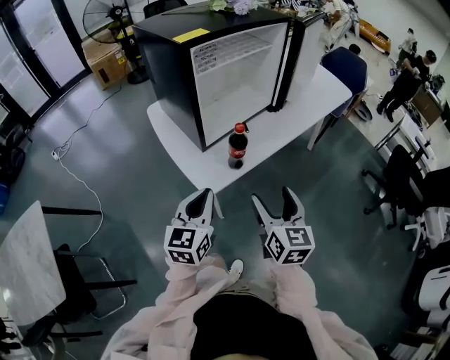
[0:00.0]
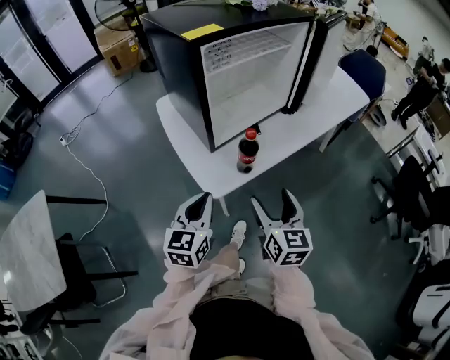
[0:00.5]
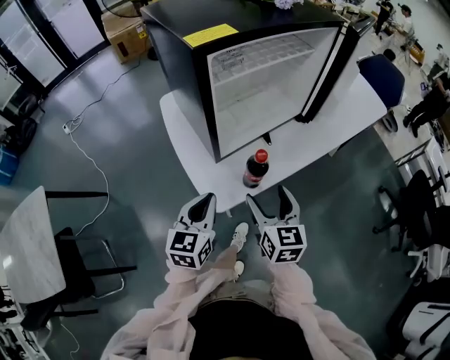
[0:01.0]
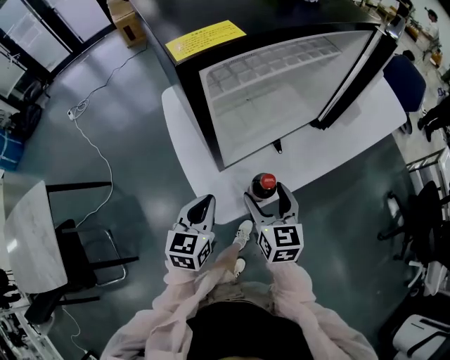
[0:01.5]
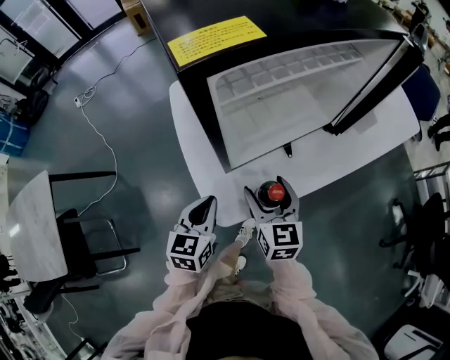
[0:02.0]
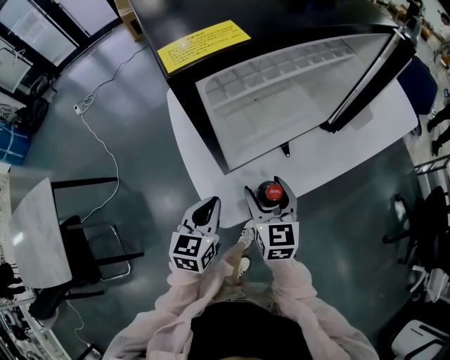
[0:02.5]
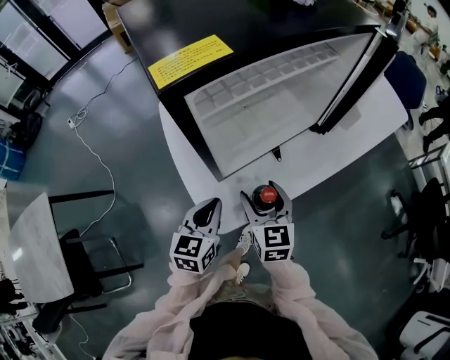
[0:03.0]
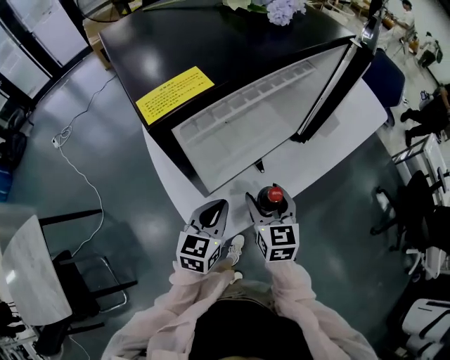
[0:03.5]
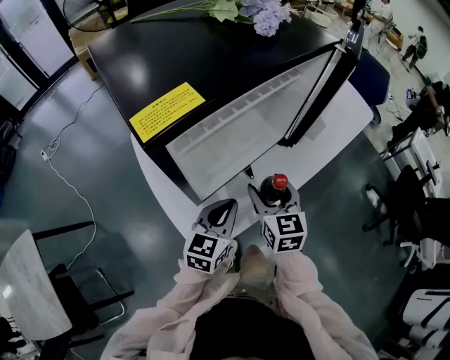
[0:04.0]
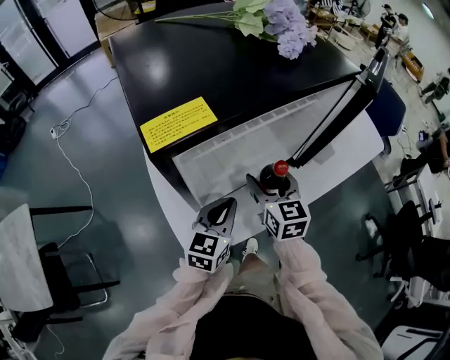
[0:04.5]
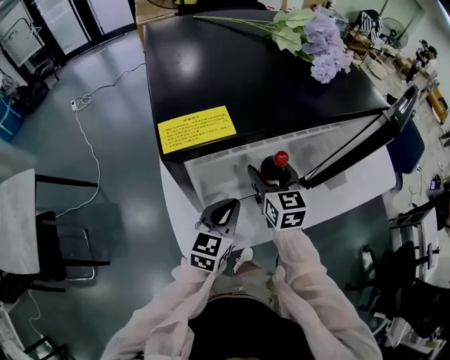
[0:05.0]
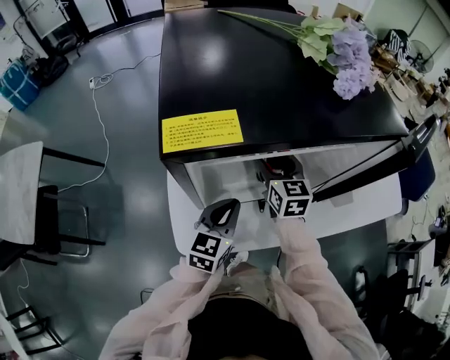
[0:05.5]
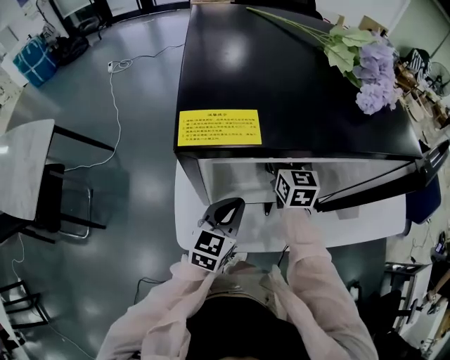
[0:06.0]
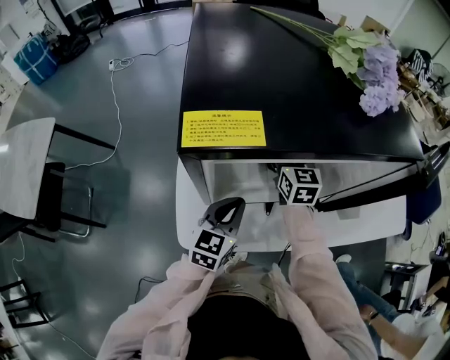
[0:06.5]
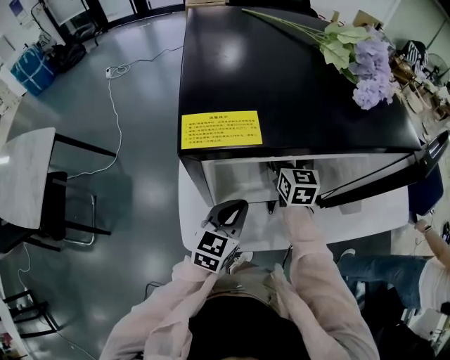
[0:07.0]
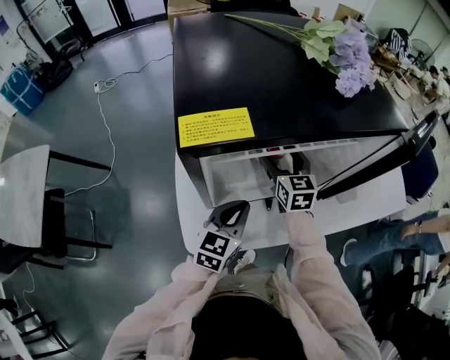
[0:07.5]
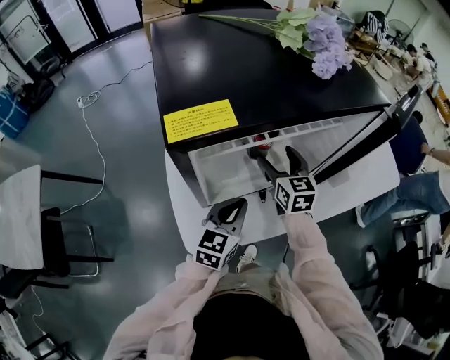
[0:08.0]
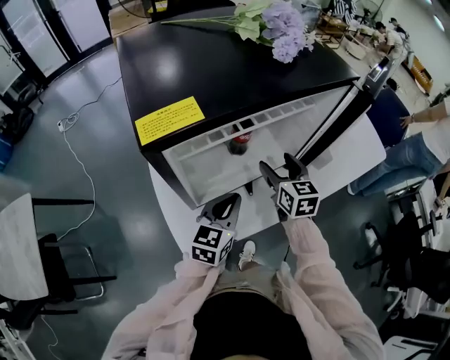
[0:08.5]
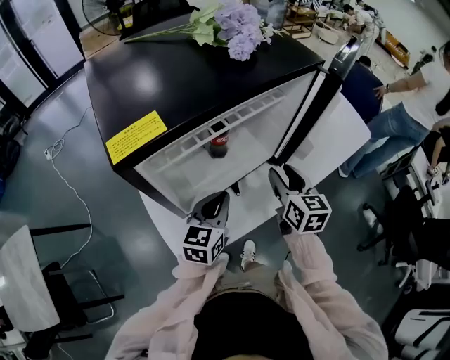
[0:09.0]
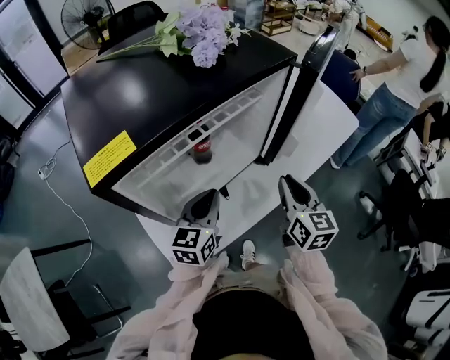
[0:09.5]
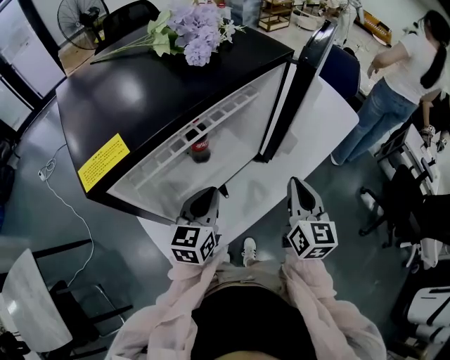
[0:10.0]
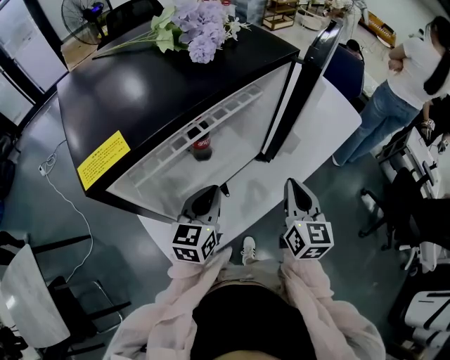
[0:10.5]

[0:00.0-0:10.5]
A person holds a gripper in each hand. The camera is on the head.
0:00.0 to 0:02.0: The left gripper shifts roughly 20 cm forward and downward, and changes its angle by roughly 20 degrees. Meanwhile the right gripper heads forward, covering some 25 cm.
0:02.0 to 0:04.0: The two grippers go about 15 cm to the right, forward and upward. The left gripper swivels approximately 20 degrees.
0:04.0 to 0:06.5: The right gripper ends up roughly 25 cm from where it was, and swivels about 30 degrees, while the left gripper ends up about 5 cm from where it was, and changes its angle by approximately 30 degrees.
0:06.5 to 0:08.5: The right gripper heads backward and to the right, covering about 15 cm. The left gripper shifts by approximately 5 cm.
0:08.5 to 0:10.5: The right gripper shifts roughly 15 cm to the right and backward, changes its angle by roughly 30 degrees, and closes up; the left gripper changes place by some 5 cm.

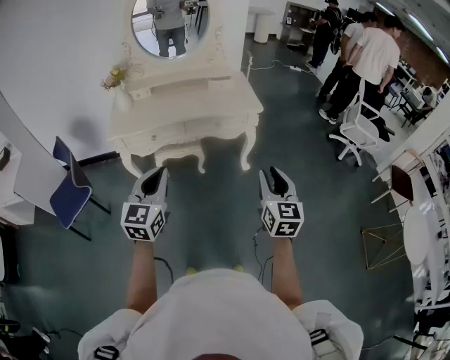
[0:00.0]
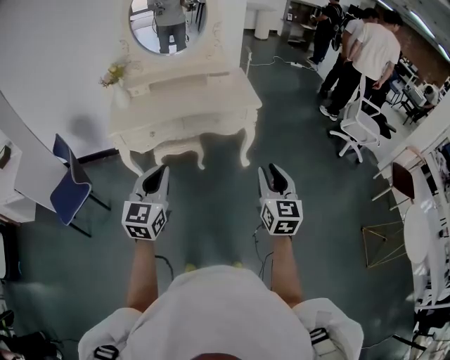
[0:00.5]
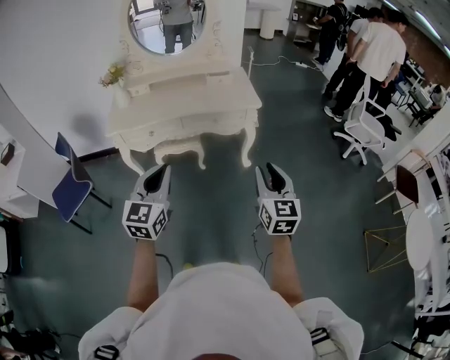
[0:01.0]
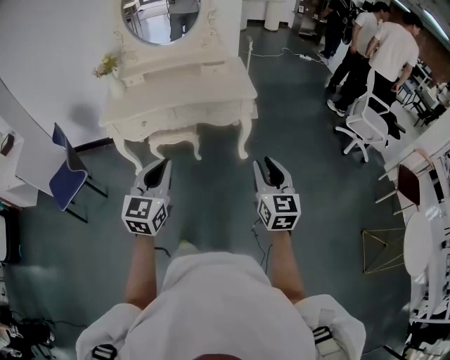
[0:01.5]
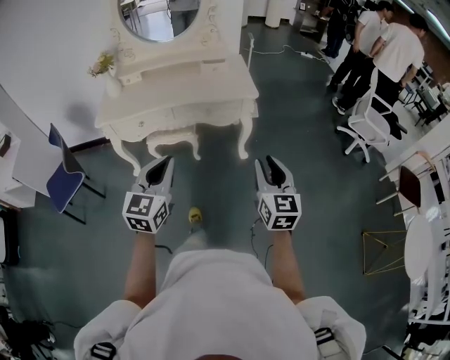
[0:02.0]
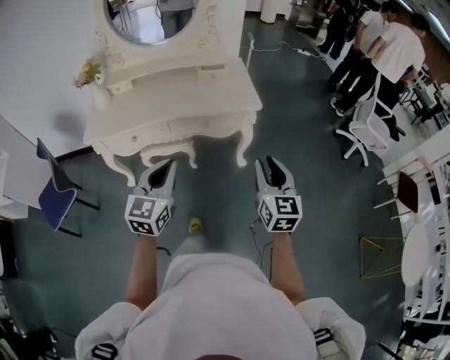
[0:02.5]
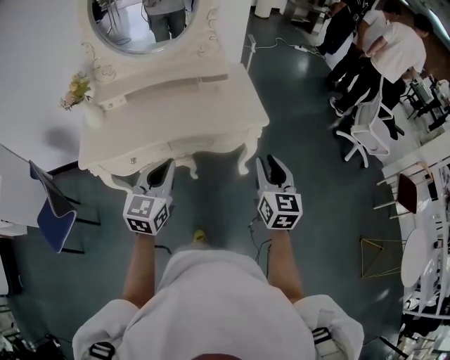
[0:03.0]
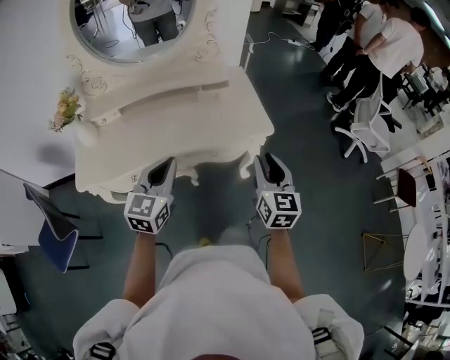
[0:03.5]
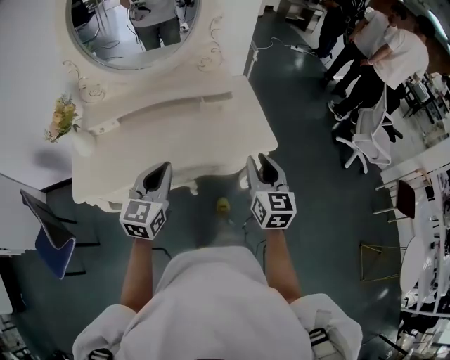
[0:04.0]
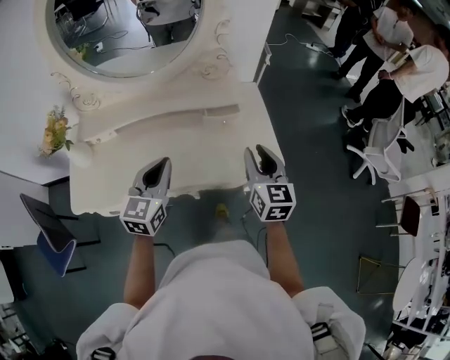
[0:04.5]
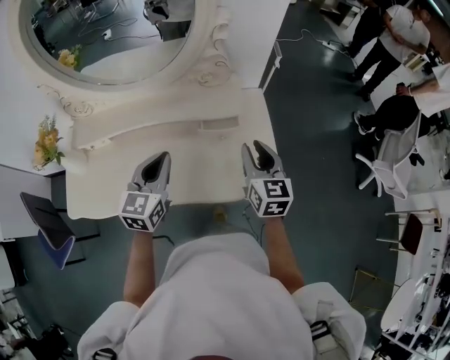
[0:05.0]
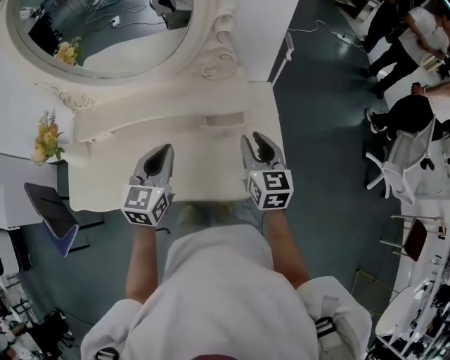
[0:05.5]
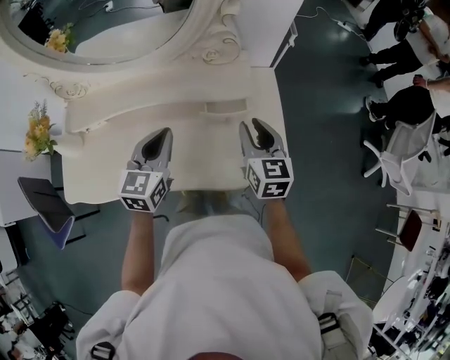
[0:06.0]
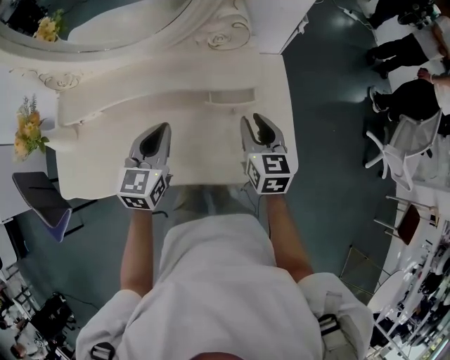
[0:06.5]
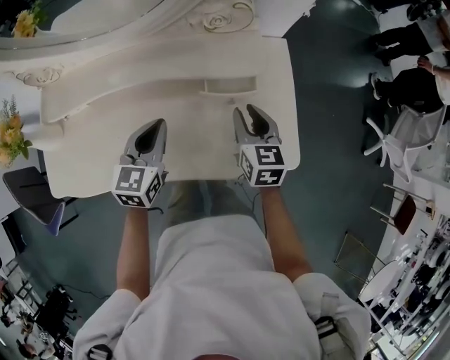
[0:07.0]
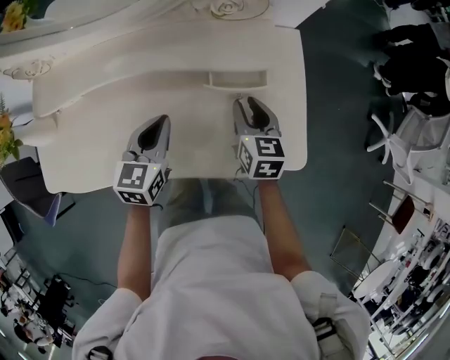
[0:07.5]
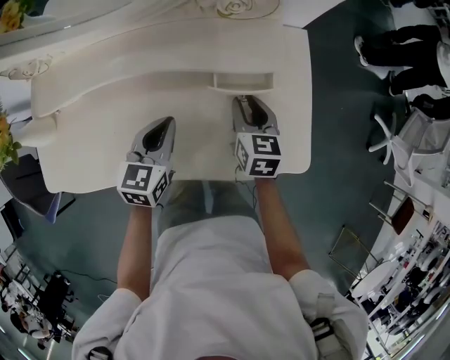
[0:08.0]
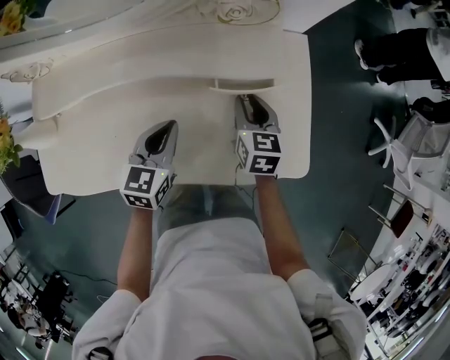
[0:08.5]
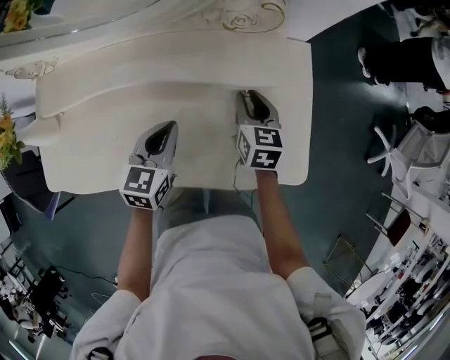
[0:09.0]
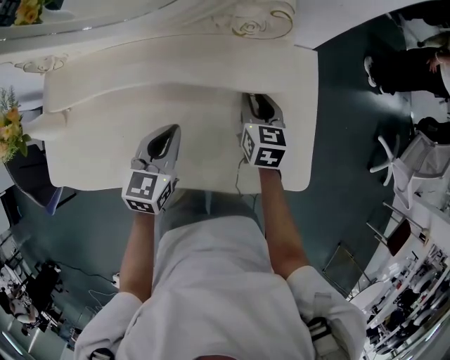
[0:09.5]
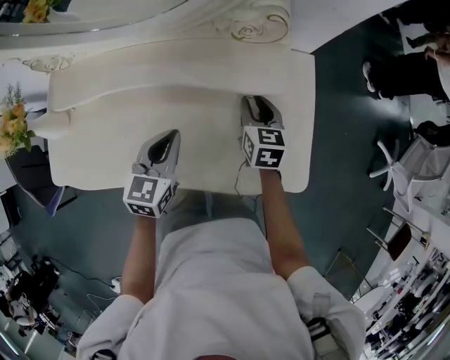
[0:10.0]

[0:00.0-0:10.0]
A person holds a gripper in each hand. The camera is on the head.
0:00.0 to 0:02.0: The left gripper is displaced to the right by approximately 15 cm. Meanwhile the right gripper travels to the right and forward by about 10 cm.
0:02.0 to 0:04.0: The pair of grippers is taken forward and to the left, about 50 cm.
0:04.0 to 0:06.0: Both grippers travel together forward, roughly 30 cm.
0:06.0 to 0:08.0: The two grippers go approximately 15 cm downward.
0:08.0 to 0:10.0: The right gripper shifts roughly 5 cm forward.

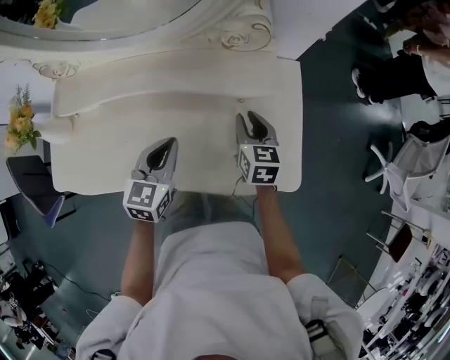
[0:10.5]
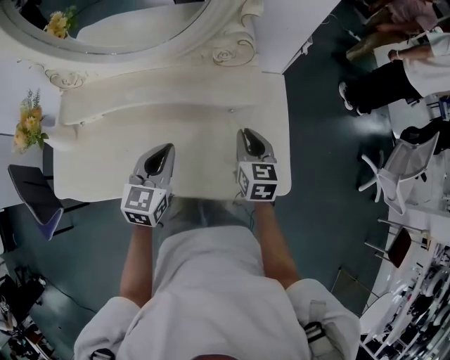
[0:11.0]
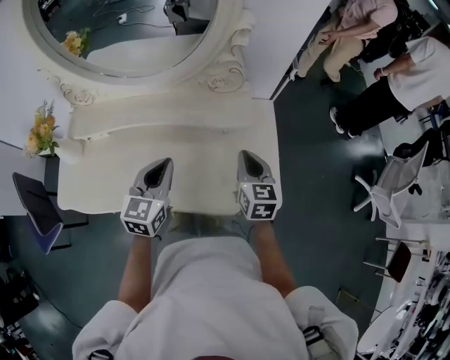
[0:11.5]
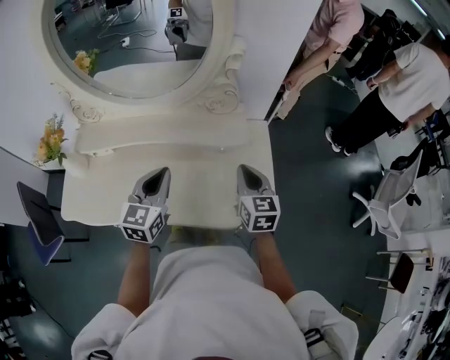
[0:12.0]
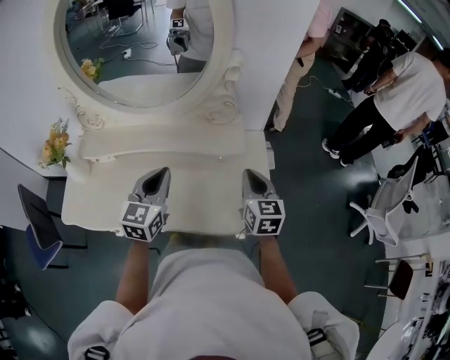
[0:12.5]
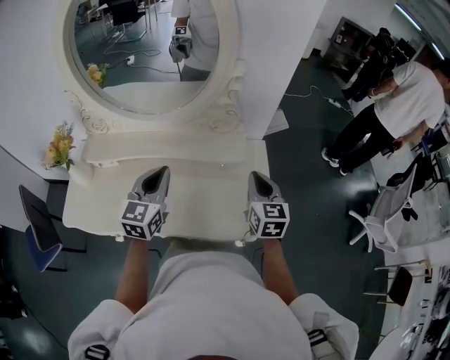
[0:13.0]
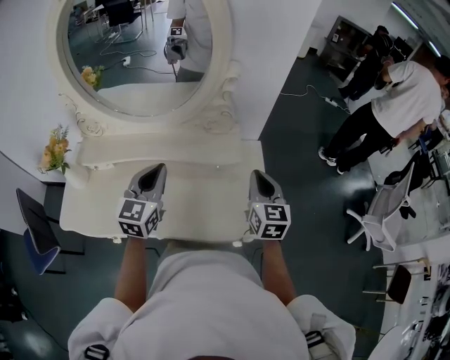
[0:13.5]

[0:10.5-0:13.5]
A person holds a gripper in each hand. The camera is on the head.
0:10.5 to 0:12.0: The left gripper is displaced upward by roughly 15 cm. Meanwhile the right gripper moves upward and backward, approximately 15 cm, and closes its fingers.
0:12.0 to 0:13.5: The grippers both shift upward by some 5 cm.

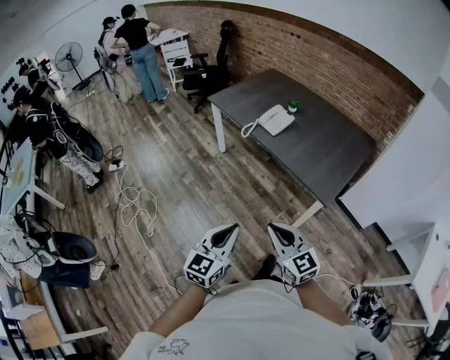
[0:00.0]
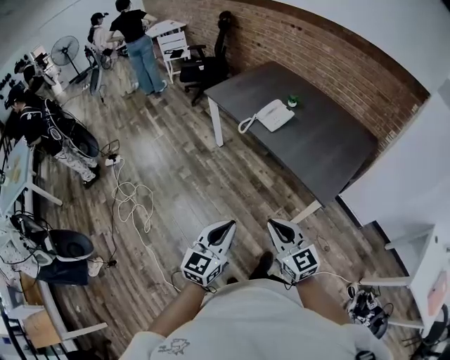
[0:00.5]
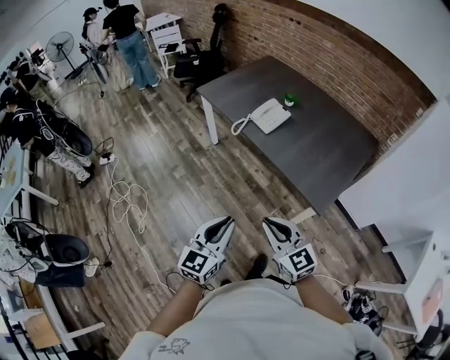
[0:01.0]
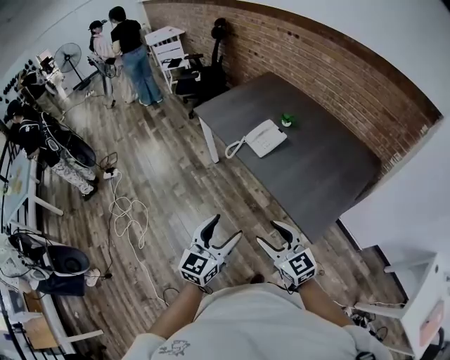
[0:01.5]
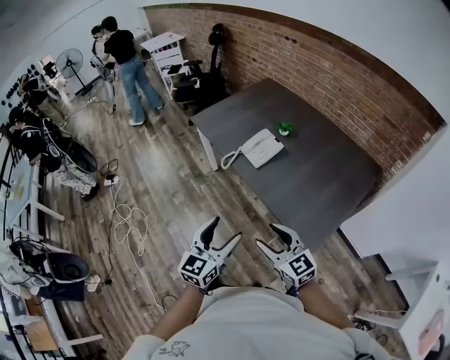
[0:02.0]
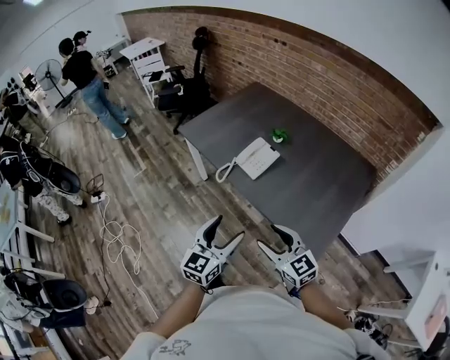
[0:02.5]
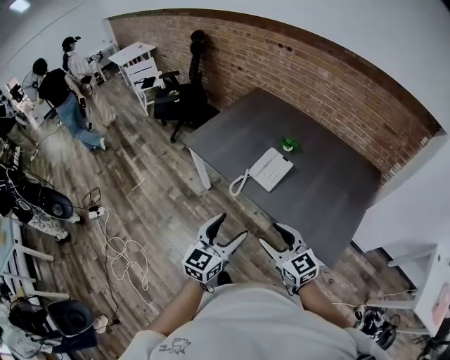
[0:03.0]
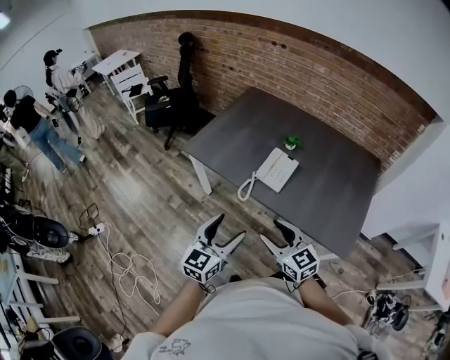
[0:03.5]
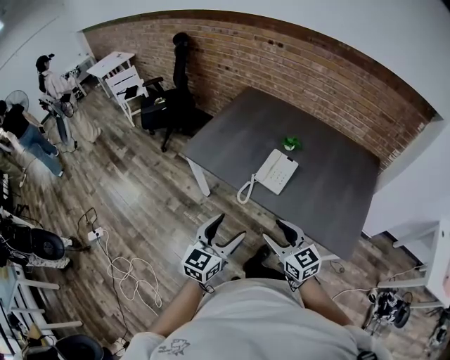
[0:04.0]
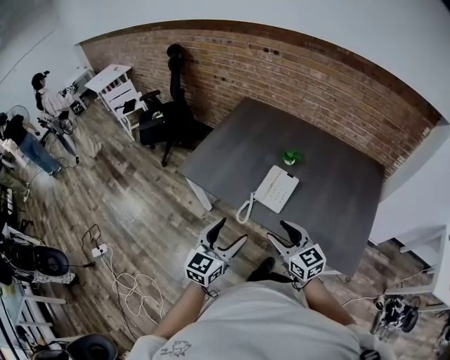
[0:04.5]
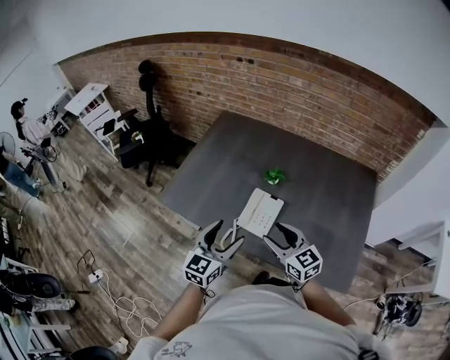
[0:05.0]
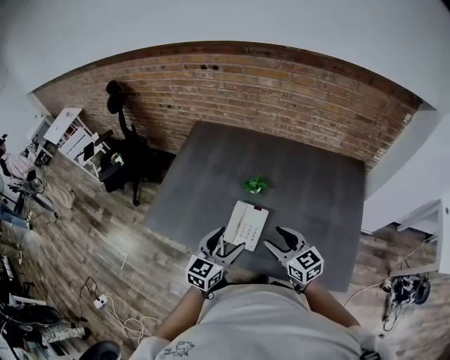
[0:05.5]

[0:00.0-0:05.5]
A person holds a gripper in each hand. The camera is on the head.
0:00.0 to 0:02.0: The two grippers go about 30 cm forward and to the right. The left gripper opens, while the right gripper opens up.
0:02.0 to 0:03.5: Both grippers travel together to the left and forward, approximately 30 cm. The right gripper turns by approximately 20 degrees. Meanwhile the left gripper turns by about 20 degrees.
0:03.5 to 0:05.5: Both grippers move forward and to the right, some 35 cm.
